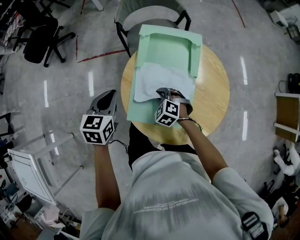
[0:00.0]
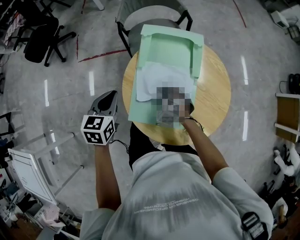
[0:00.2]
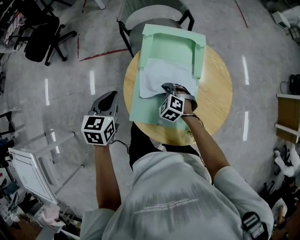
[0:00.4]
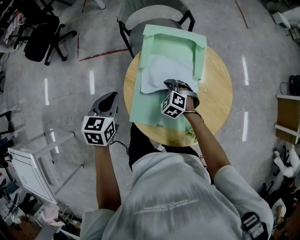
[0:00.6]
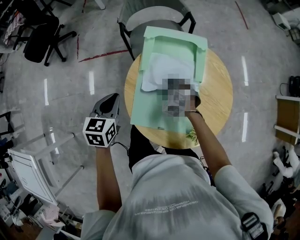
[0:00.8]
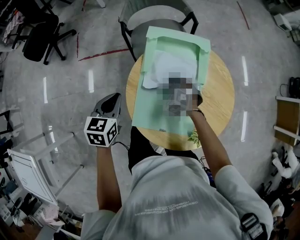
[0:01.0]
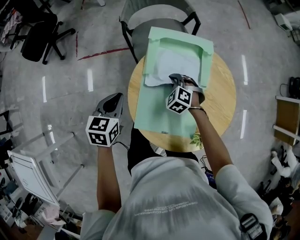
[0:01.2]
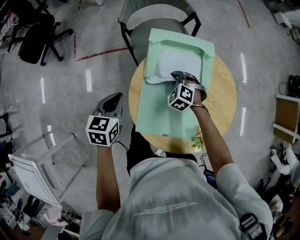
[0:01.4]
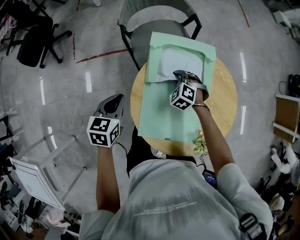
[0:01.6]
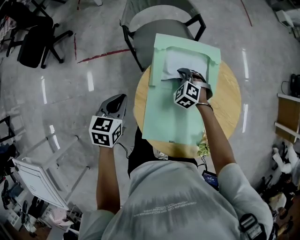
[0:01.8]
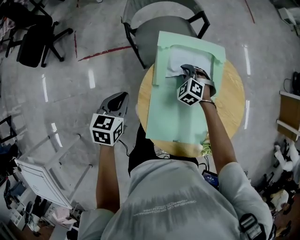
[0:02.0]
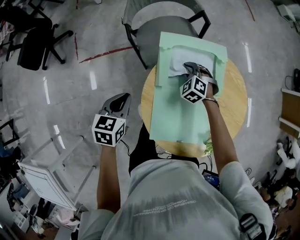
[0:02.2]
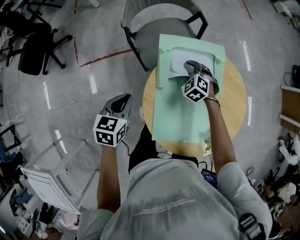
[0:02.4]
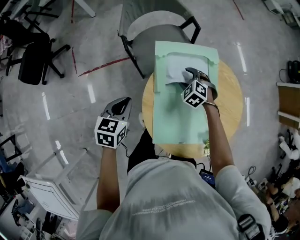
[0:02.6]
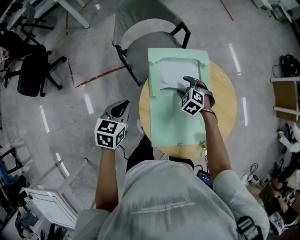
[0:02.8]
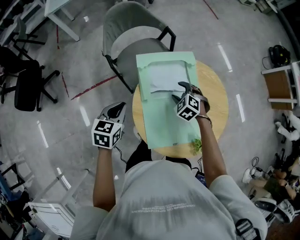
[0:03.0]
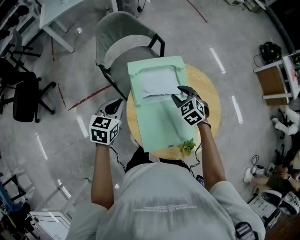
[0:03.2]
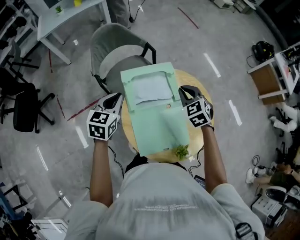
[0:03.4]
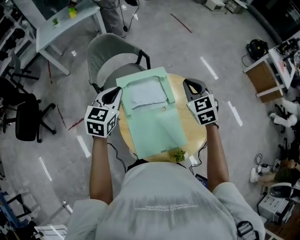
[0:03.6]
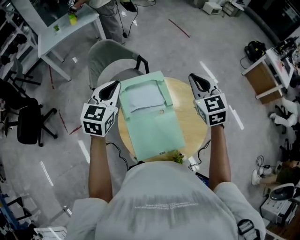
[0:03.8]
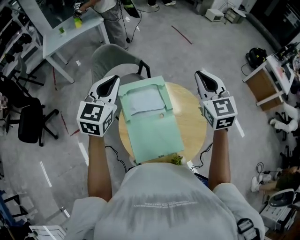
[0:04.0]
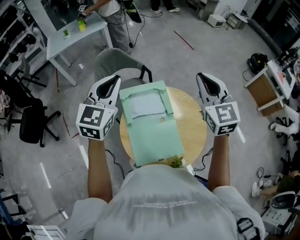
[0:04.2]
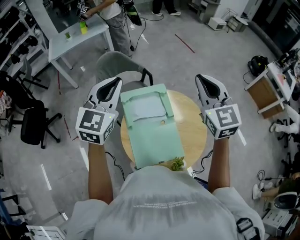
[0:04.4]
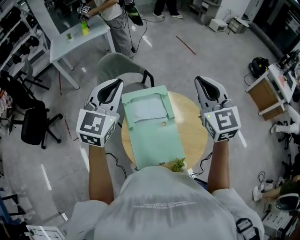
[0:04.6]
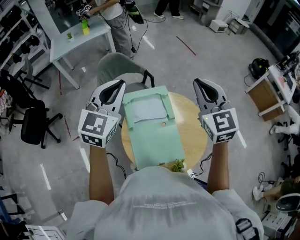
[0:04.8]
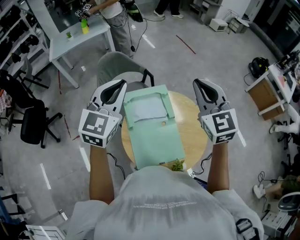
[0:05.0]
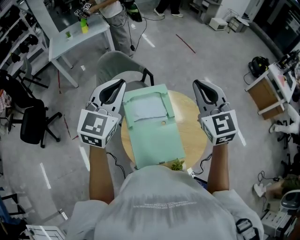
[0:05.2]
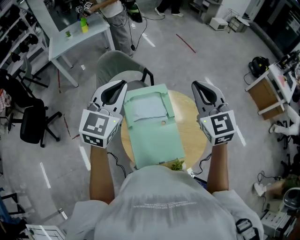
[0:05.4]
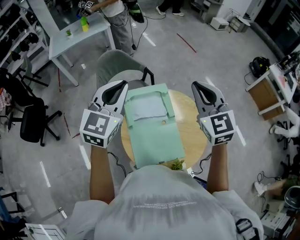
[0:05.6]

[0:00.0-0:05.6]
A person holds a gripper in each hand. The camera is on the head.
0:00.0 to 0:01.4: The left gripper shifts about 5 cm forward. Meanwhile the right gripper travels forward by roughly 15 cm.
0:01.4 to 0:02.8: The right gripper reaches roughly 10 cm forward, then returns, and opens. Meanwhile the left gripper travels forward by approximately 5 cm.
0:02.8 to 0:04.2: The grippers both shift upward by roughly 40 cm. The right gripper points its fingers some 60 degrees further upward, and closes its fingers. The left gripper points its fingers roughly 30 degrees further upward.
0:04.2 to 0:05.6: There are only small adjustments of the grippers.

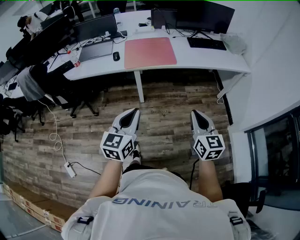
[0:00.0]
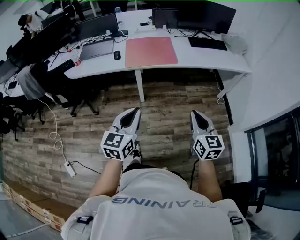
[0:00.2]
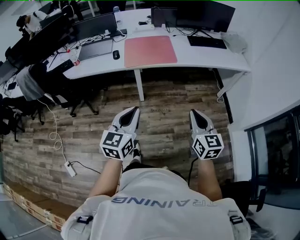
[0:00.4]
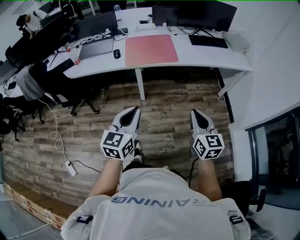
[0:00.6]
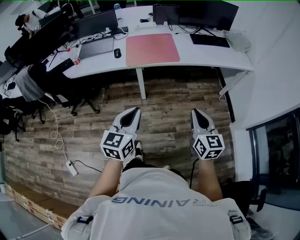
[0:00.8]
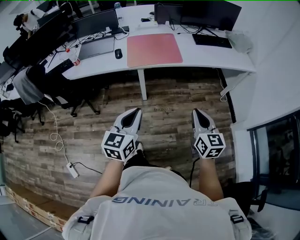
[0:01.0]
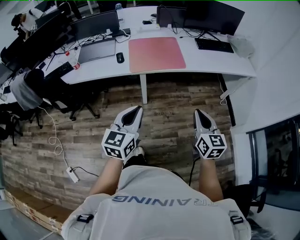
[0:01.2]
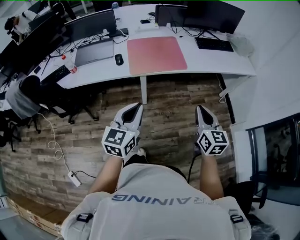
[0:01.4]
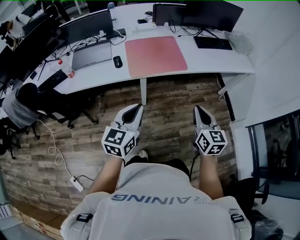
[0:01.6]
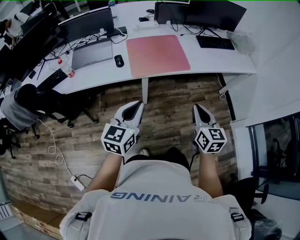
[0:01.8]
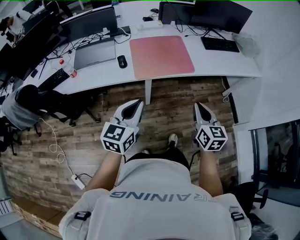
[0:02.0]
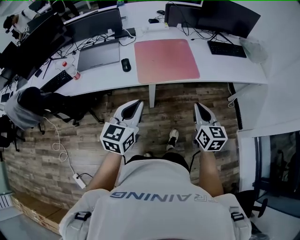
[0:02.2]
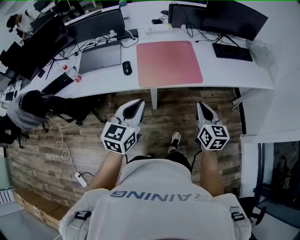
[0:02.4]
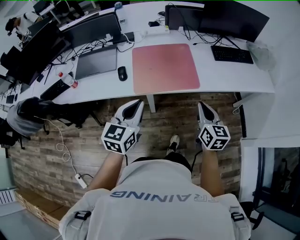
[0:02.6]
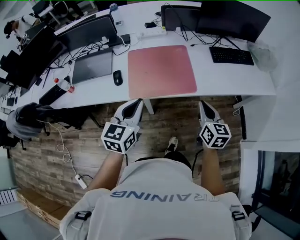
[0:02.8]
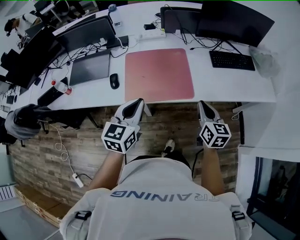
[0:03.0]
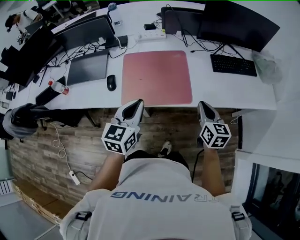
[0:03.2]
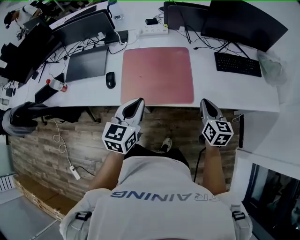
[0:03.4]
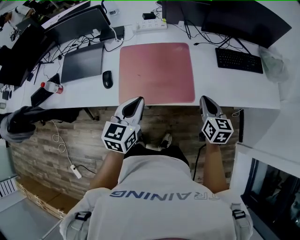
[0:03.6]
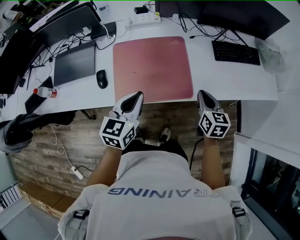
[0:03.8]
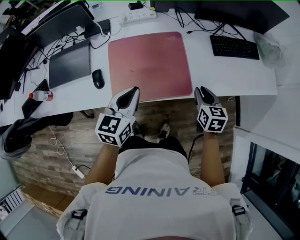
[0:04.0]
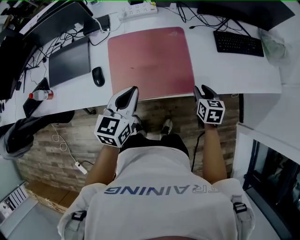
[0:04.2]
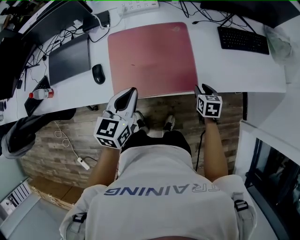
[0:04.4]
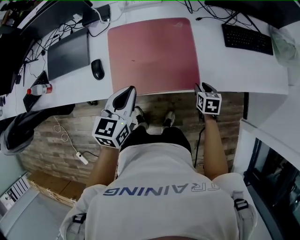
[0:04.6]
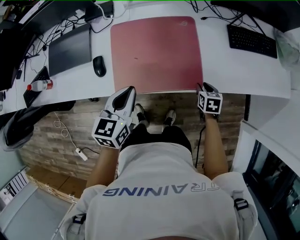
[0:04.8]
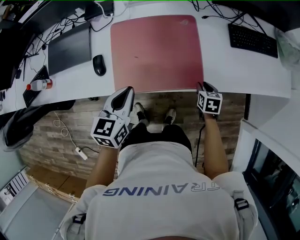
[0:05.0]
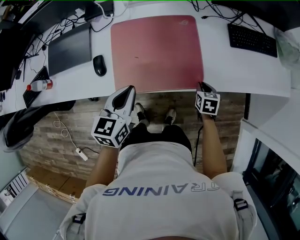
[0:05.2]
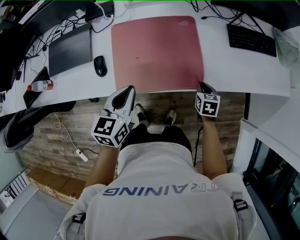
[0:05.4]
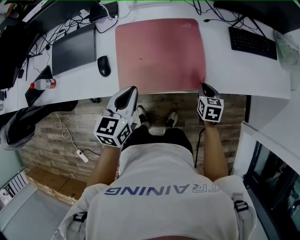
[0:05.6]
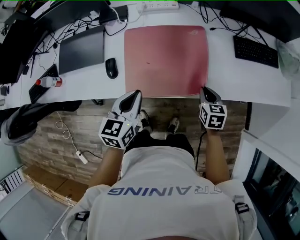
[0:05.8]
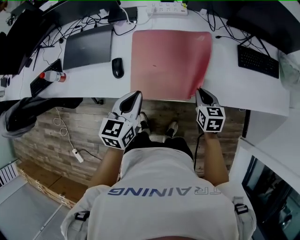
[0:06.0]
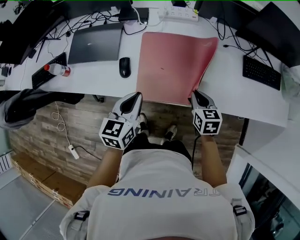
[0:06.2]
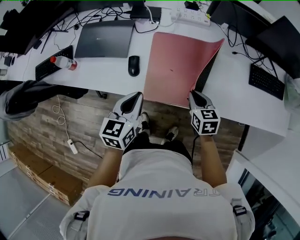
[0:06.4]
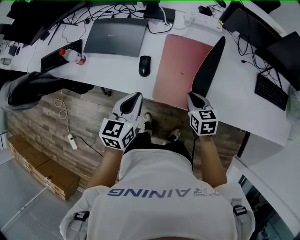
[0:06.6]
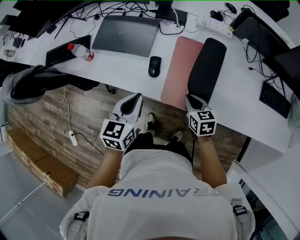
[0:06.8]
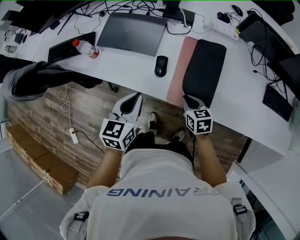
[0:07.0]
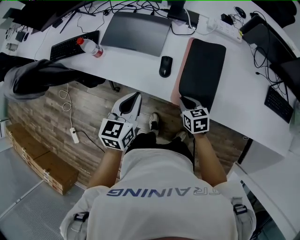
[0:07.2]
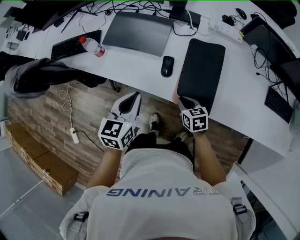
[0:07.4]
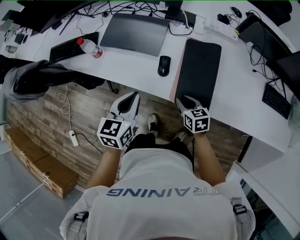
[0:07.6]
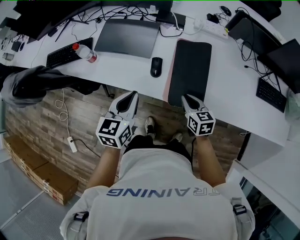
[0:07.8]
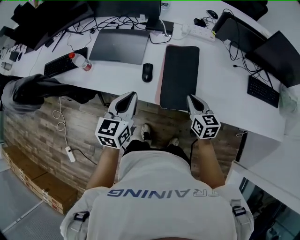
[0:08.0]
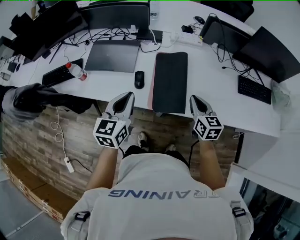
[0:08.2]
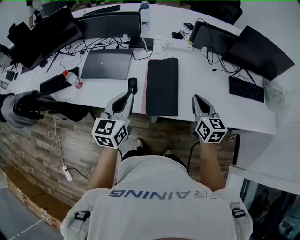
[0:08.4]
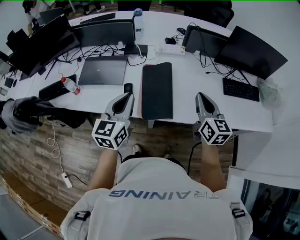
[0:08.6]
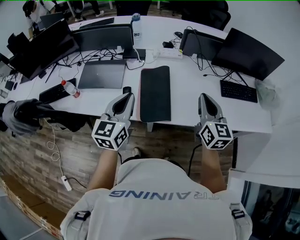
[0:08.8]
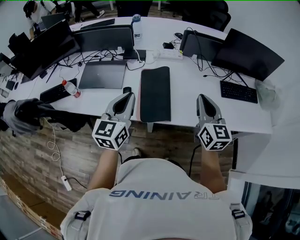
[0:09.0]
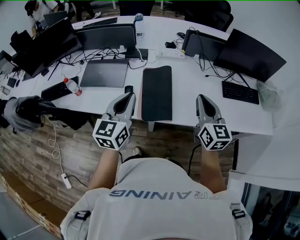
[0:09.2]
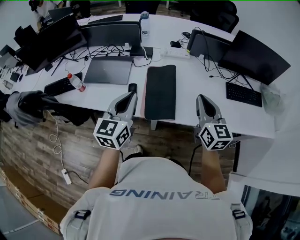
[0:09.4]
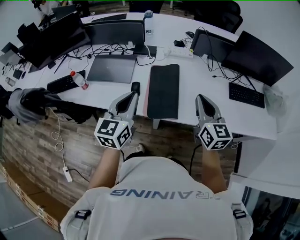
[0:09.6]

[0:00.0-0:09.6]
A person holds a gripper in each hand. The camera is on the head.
0:00.0 to 0:01.6: Both grippers move forward and to the left, approximately 20 cm.
0:01.6 to 0:03.2: The two grippers go some 30 cm forward.
0:03.2 to 0:04.8: The right gripper travels downward by about 25 cm, tips its fingers downward by approximately 40 degrees, and opens; the left gripper heads downward and forward, covering about 10 cm.
0:04.8 to 0:06.4: The left gripper heads to the left, covering roughly 10 cm, while the right gripper is displaced to the left and upward by roughly 25 cm, rotates some 30 degrees, and closes its fingers.
0:06.4 to 0:08.0: The two grippers go roughly 10 cm to the left.
0:08.0 to 0:09.6: The right gripper travels upward and to the right by approximately 20 cm, and swivels about 20 degrees, while the left gripper moves upward and to the right, approximately 15 cm.

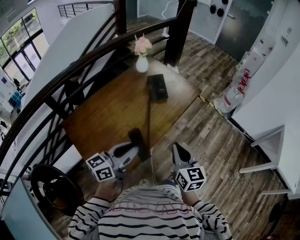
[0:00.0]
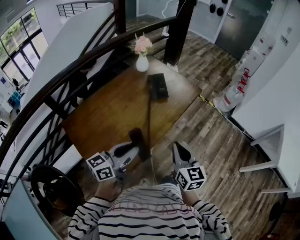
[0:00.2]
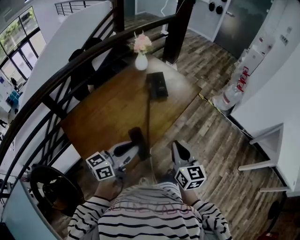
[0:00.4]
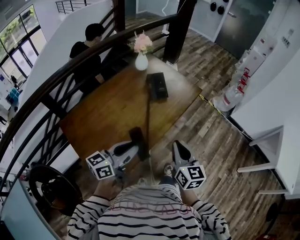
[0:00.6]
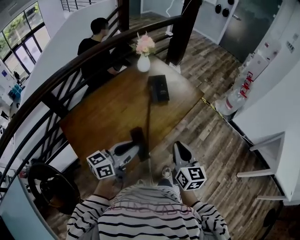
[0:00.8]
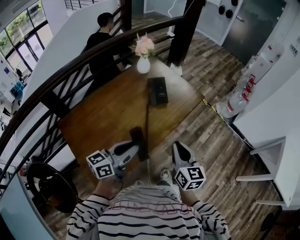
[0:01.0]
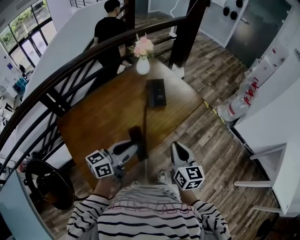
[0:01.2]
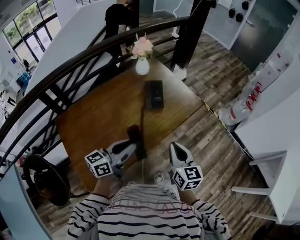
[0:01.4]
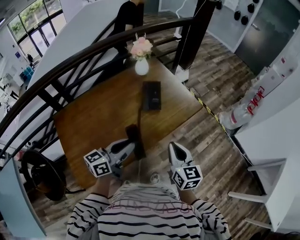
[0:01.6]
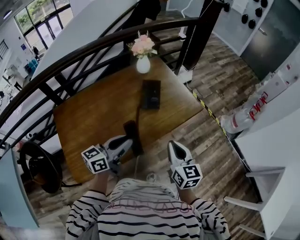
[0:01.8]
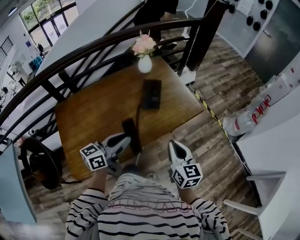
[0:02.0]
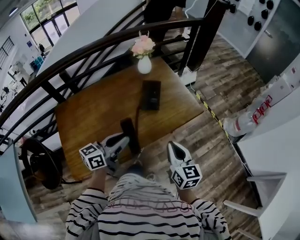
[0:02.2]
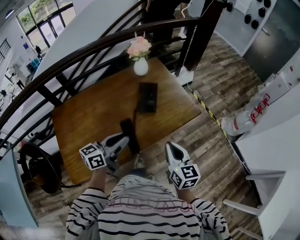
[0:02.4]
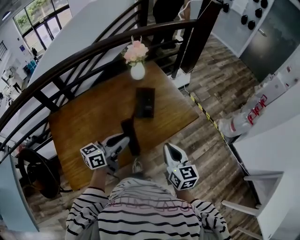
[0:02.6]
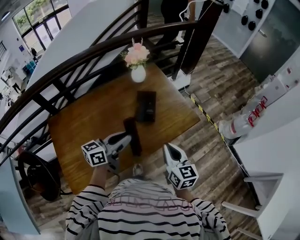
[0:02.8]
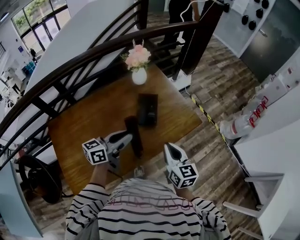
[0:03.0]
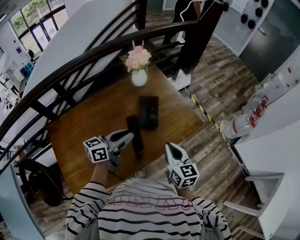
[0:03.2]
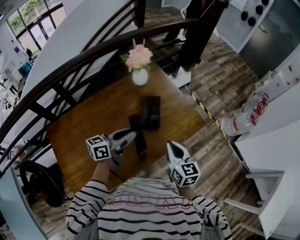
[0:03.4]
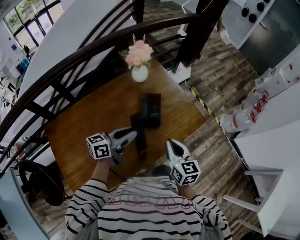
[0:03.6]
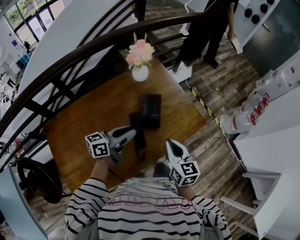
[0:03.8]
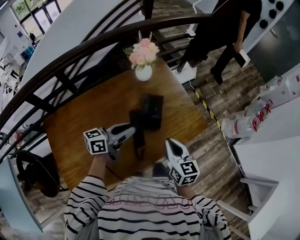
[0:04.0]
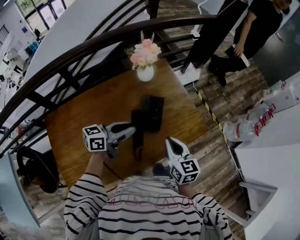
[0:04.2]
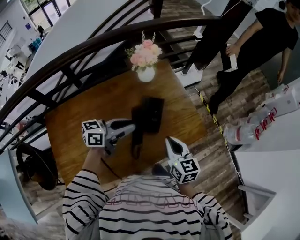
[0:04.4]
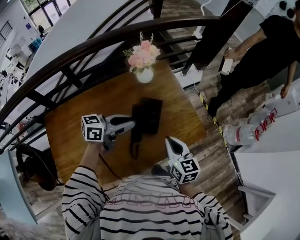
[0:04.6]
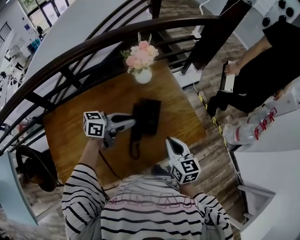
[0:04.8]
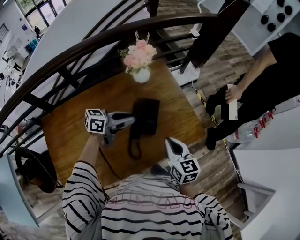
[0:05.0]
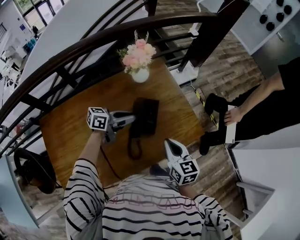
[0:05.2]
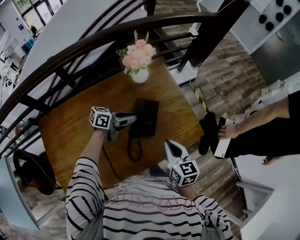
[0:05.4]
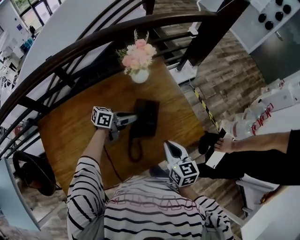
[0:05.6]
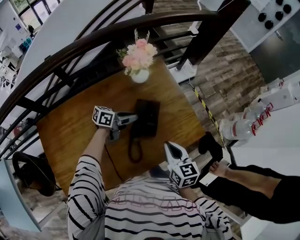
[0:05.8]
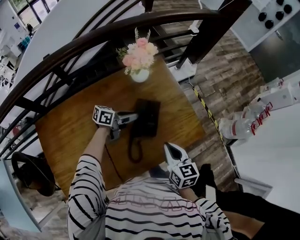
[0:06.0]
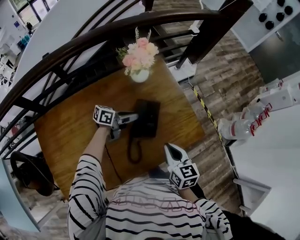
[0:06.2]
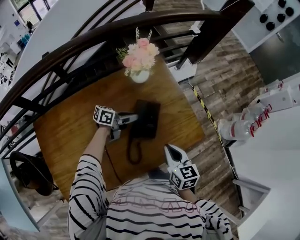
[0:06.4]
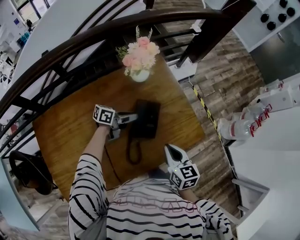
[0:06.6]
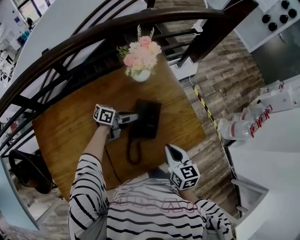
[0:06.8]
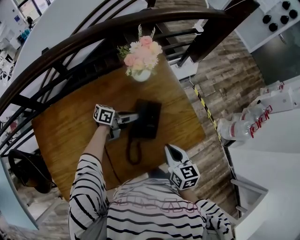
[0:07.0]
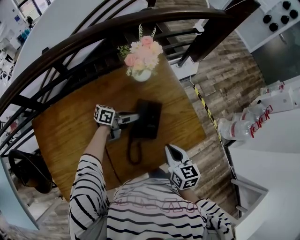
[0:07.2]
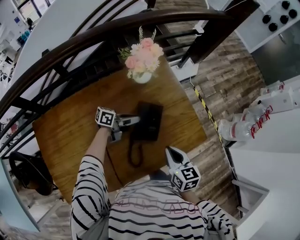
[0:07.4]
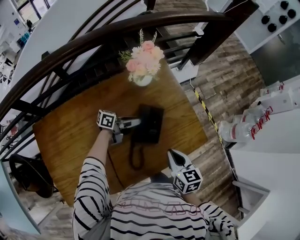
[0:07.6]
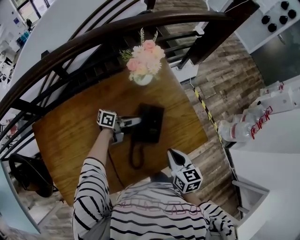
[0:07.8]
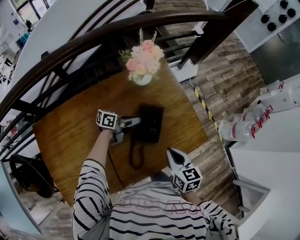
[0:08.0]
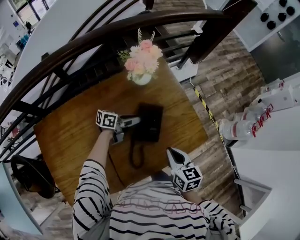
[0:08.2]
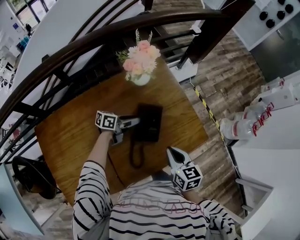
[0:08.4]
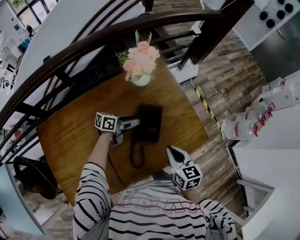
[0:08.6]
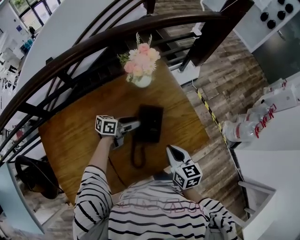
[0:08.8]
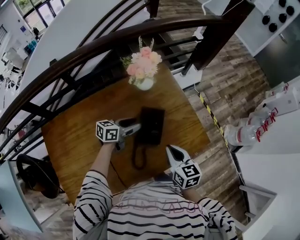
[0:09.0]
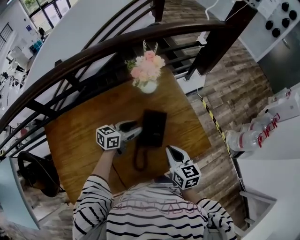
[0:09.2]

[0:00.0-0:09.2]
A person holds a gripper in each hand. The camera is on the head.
0:00.0 to 0:01.6: The right gripper travels forward by approximately 20 cm. The left gripper moves forward and to the right, some 20 cm.
0:01.6 to 0:03.0: Both grippers move forward, about 15 cm.
0:03.0 to 0:04.6: Both grippers move forward, about 15 cm.
0:04.6 to 0:06.2: The left gripper moves downward and forward, about 20 cm, and swivels approximately 20 degrees.
0:06.2 to 0:07.6: The grippers move only a little.
0:07.6 to 0:09.2: The left gripper is displaced upward by approximately 10 cm, swivels roughly 40 degrees, and opens its fingers.
